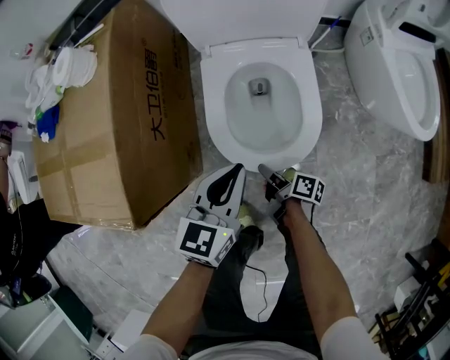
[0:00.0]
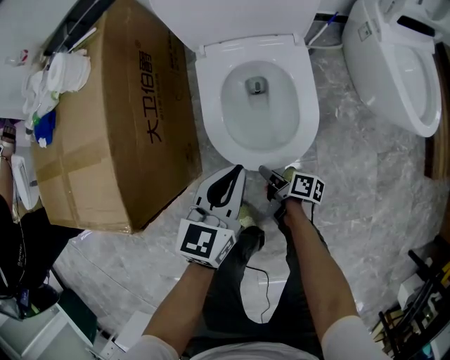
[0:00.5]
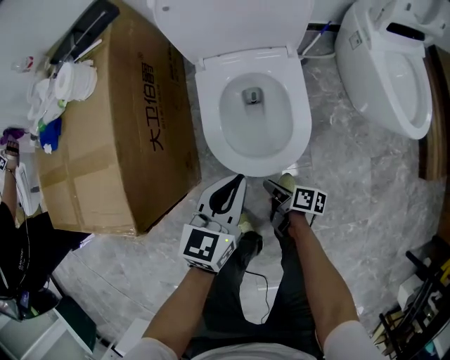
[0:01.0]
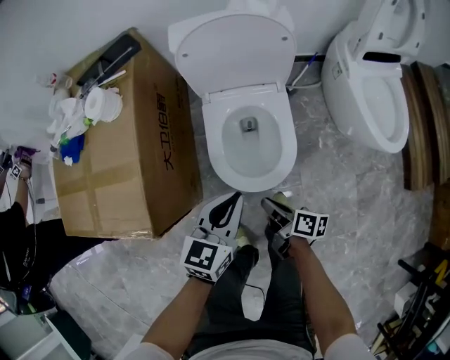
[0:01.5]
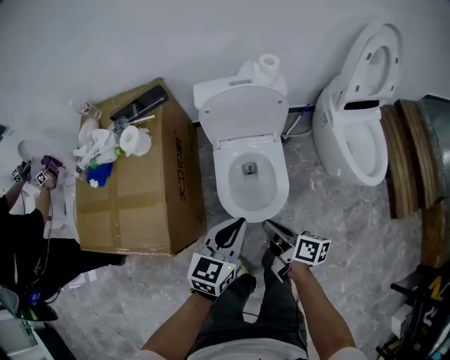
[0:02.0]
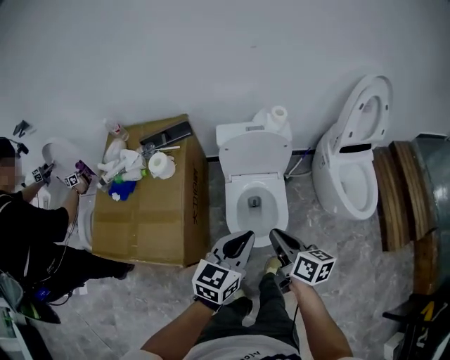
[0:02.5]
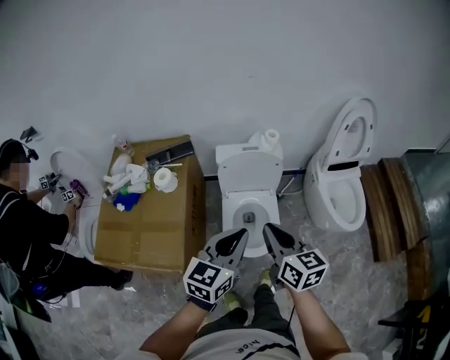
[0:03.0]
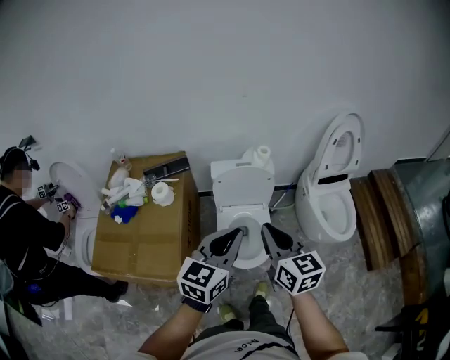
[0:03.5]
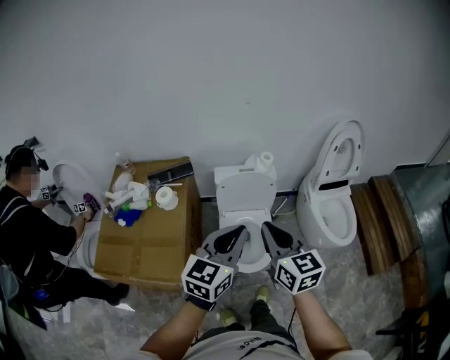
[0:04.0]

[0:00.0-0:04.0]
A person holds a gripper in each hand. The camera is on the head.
0:00.0 to 0:02.0: The right gripper goes some 35 cm upward, and turns by approximately 20 degrees. The left gripper moves upward, some 20 cm.
0:02.0 to 0:04.0: Both grippers travel together upward, some 35 cm. The right gripper rotates around the line of its fingers by roughly 60 degrees, counterclockwise from behind.

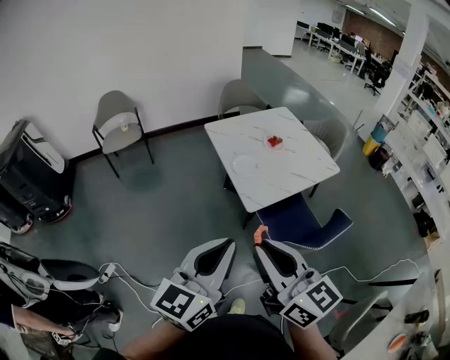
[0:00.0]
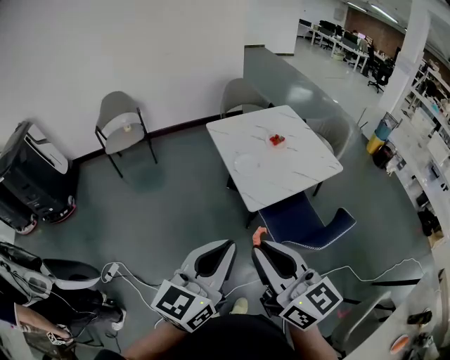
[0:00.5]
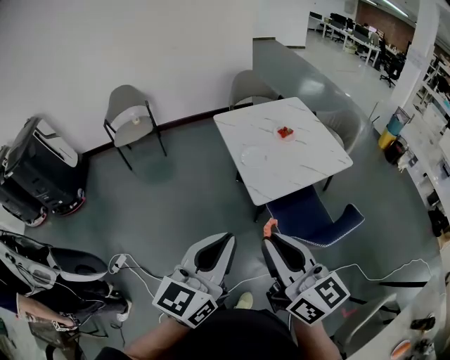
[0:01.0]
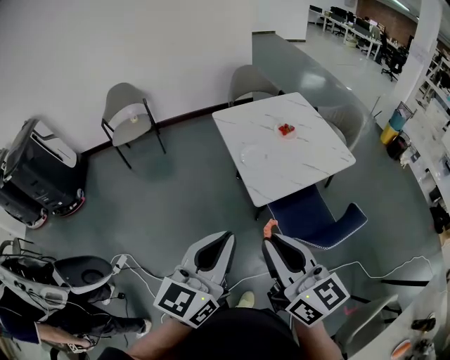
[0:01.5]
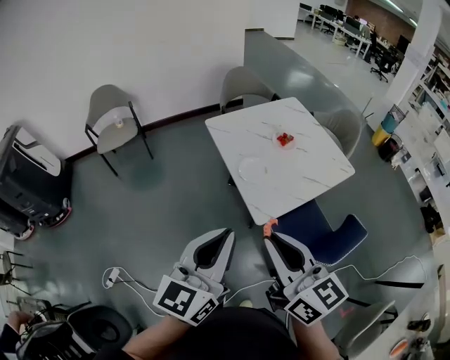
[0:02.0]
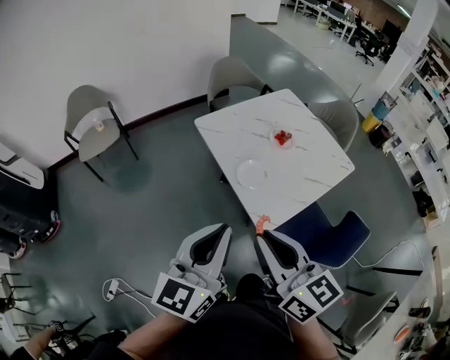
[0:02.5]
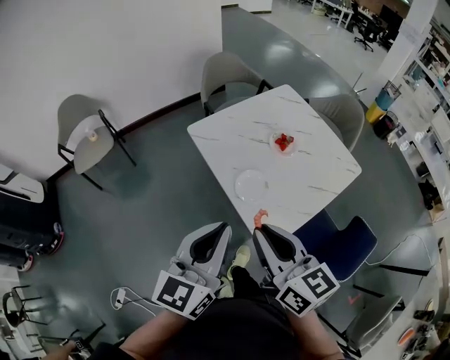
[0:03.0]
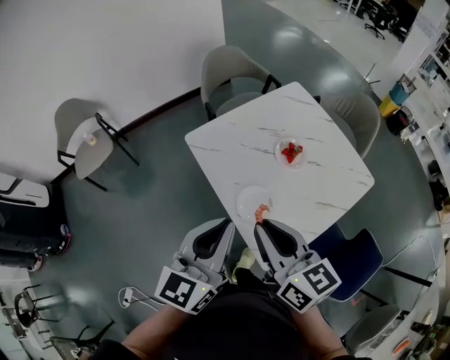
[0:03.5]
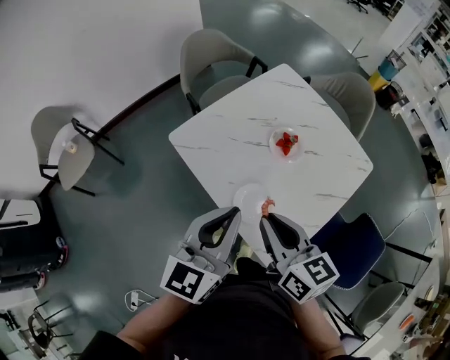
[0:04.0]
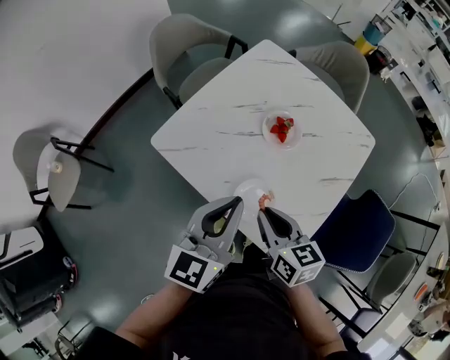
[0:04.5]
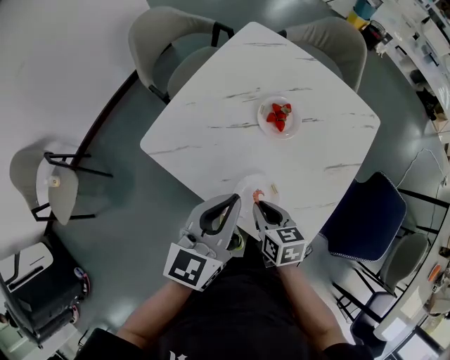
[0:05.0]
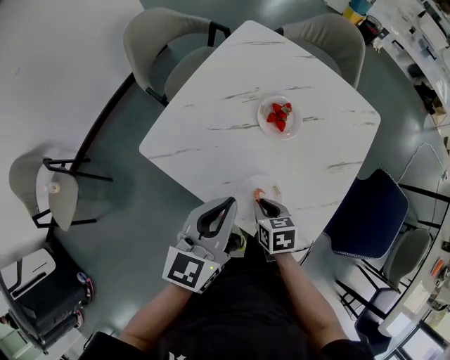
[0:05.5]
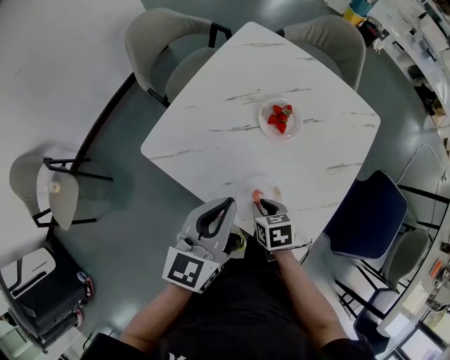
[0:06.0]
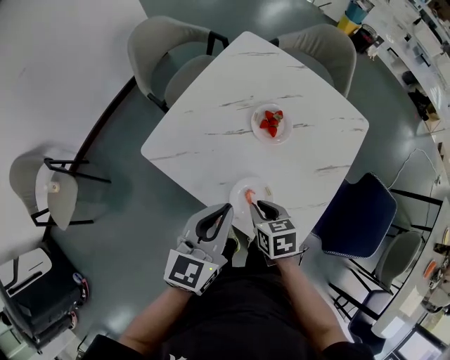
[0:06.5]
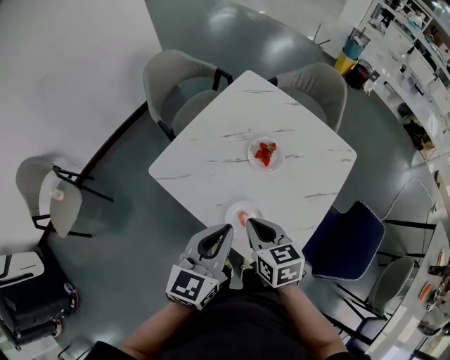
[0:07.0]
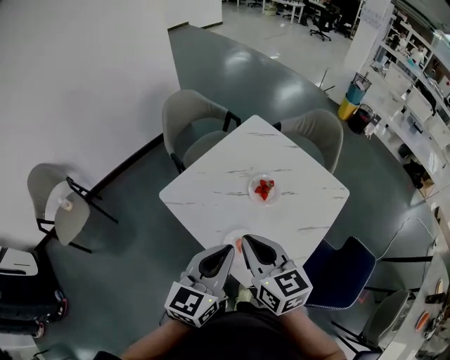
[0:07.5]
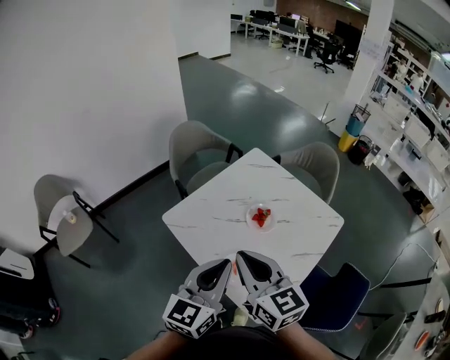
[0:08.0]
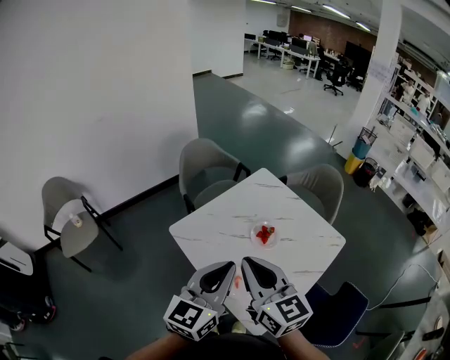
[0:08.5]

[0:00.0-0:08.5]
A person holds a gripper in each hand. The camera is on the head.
0:00.0 to 0:02.0: Both grippers travel together forward, about 15 cm.
0:02.0 to 0:04.0: Both grippers travel together forward, about 40 cm. The right gripper rotates some 30 degrees.
0:04.0 to 0:06.5: The right gripper heads downward, covering approximately 25 cm, and tips its fingers downward by some 40 degrees. Meanwhile the left gripper goes about 15 cm downward and forward.
0:06.5 to 0:08.5: The right gripper shifts about 35 cm upward, and tips its fingers upward by about 50 degrees. The left gripper goes about 20 cm upward, and rotates about 20 degrees.

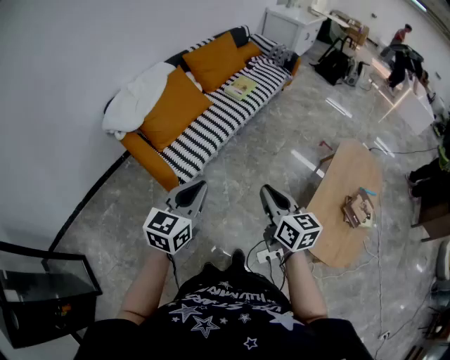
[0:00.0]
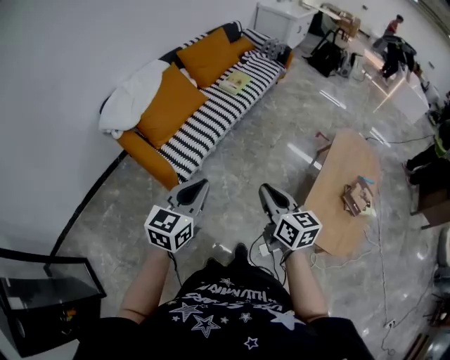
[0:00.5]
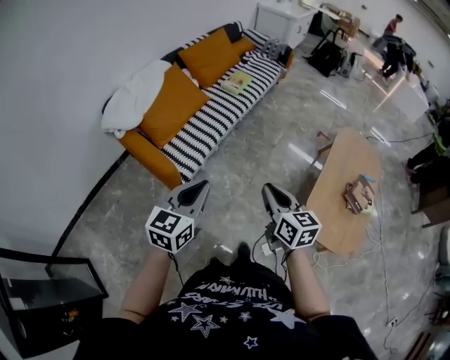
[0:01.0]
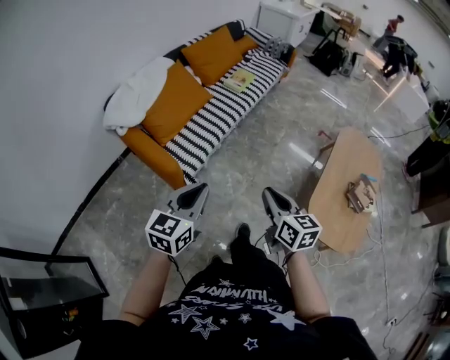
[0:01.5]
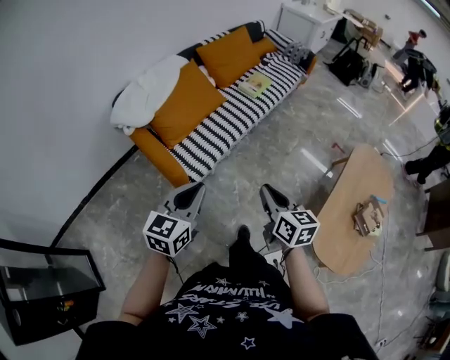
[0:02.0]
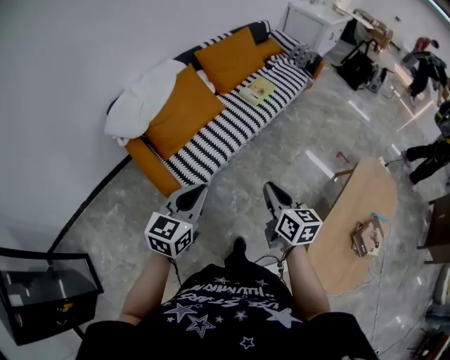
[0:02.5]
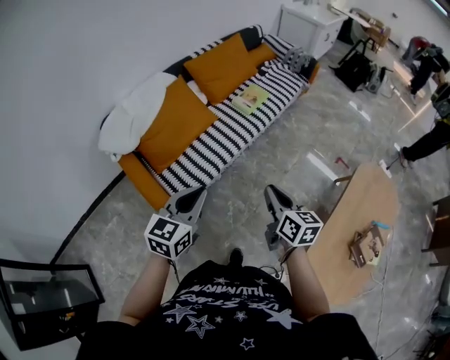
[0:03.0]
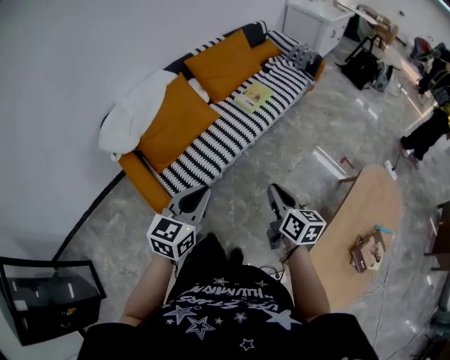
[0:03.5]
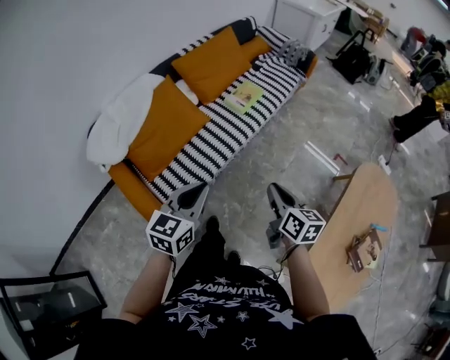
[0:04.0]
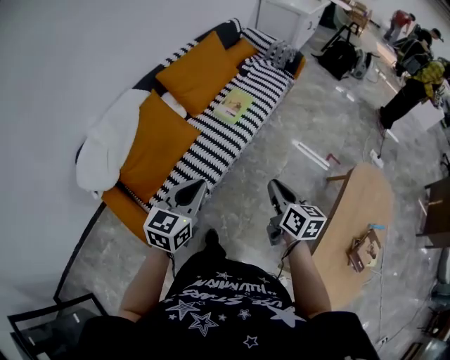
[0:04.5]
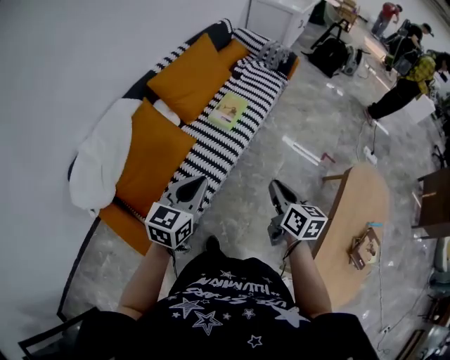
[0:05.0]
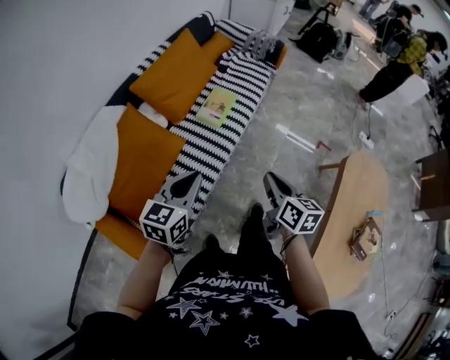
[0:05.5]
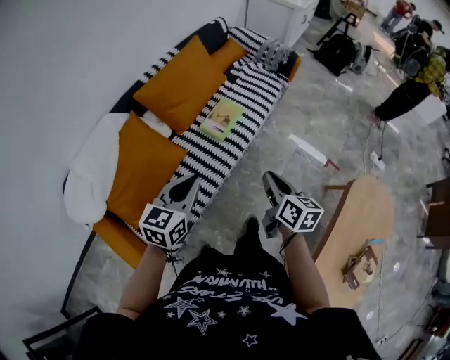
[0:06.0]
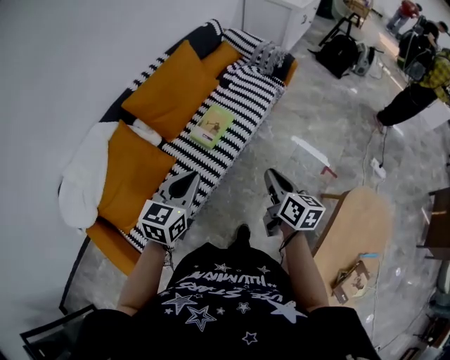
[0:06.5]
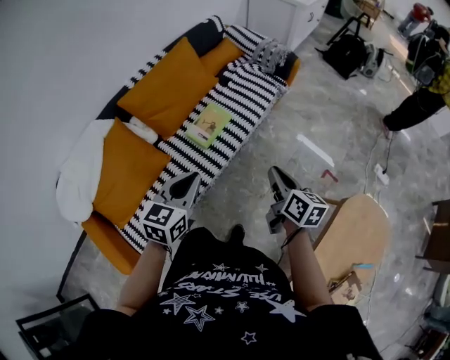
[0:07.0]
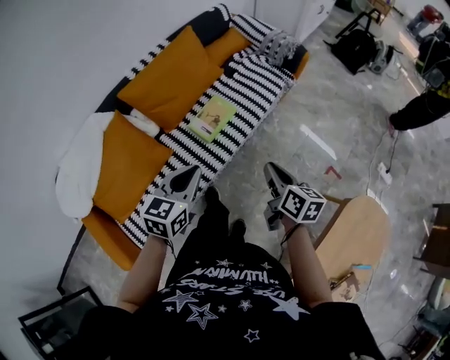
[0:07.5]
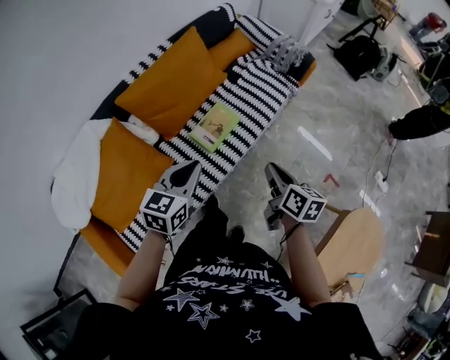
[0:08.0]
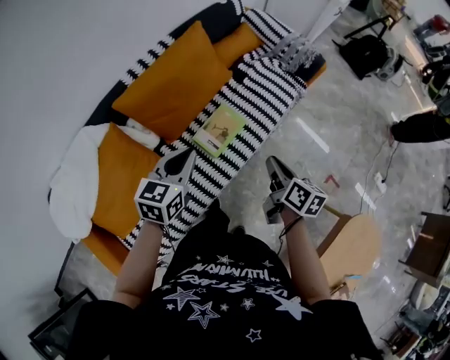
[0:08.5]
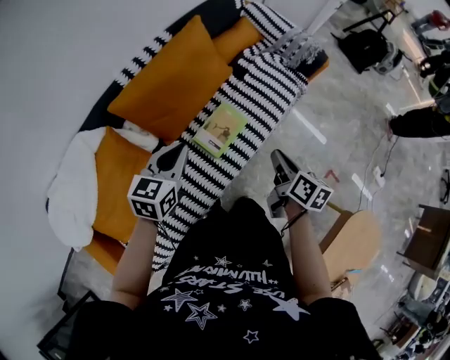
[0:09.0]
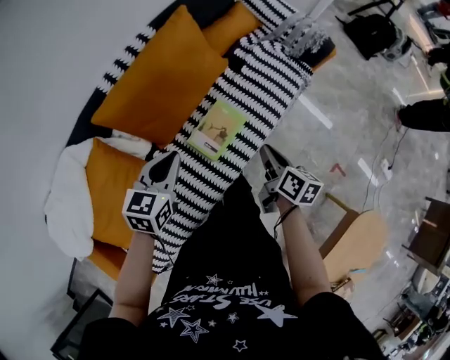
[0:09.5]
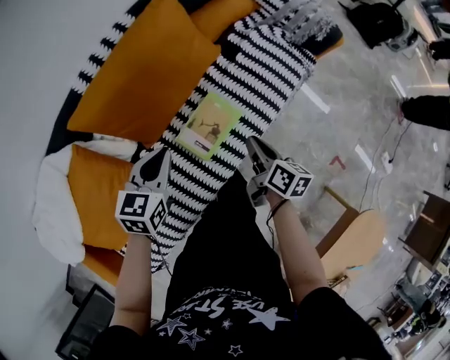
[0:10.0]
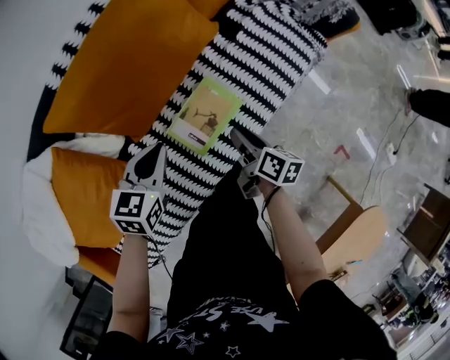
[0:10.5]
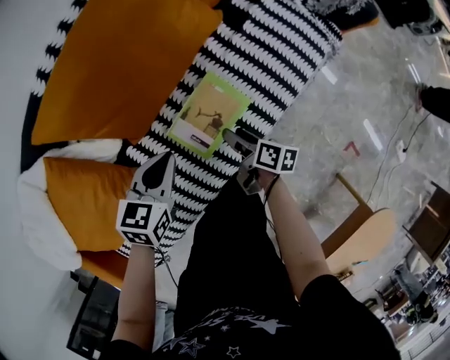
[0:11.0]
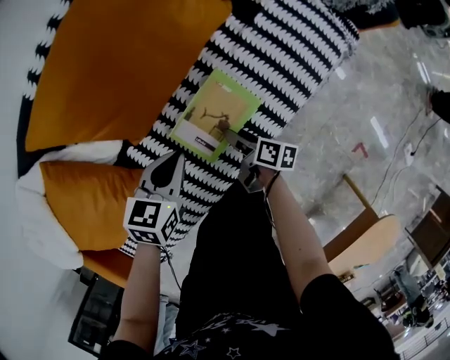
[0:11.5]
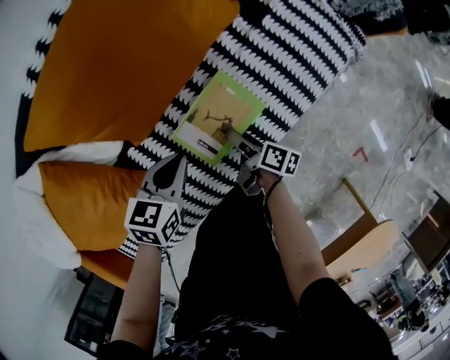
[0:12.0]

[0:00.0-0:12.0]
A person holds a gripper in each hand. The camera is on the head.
0:00.0 to 0:02.0: The right gripper heads to the left and forward, covering approximately 5 cm. The left gripper travels to the left by approximately 5 cm.
0:02.0 to 0:04.0: Both grippers move forward and to the right, roughly 30 cm.
0:04.0 to 0:06.0: The grippers both shift forward by roughly 25 cm.
0:06.0 to 0:08.0: Both grippers travel together forward, roughly 20 cm.
0:08.0 to 0:10.0: The left gripper travels forward, downward and to the left by some 30 cm. Meanwhile the right gripper is displaced forward and downward by approximately 30 cm.
0:10.0 to 0:12.0: The two grippers go about 20 cm downward. The right gripper turns by some 30 degrees, and opens its fingers.

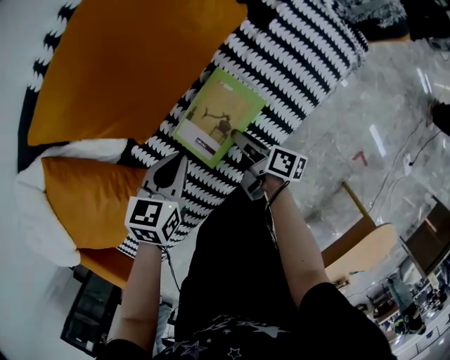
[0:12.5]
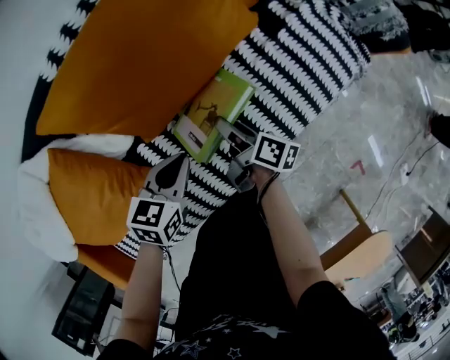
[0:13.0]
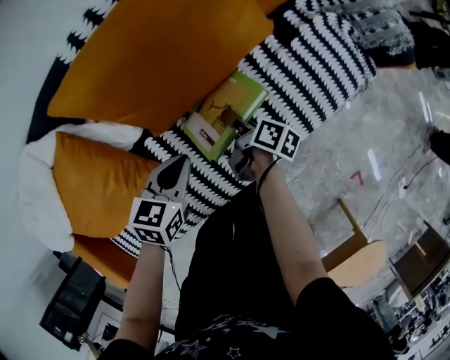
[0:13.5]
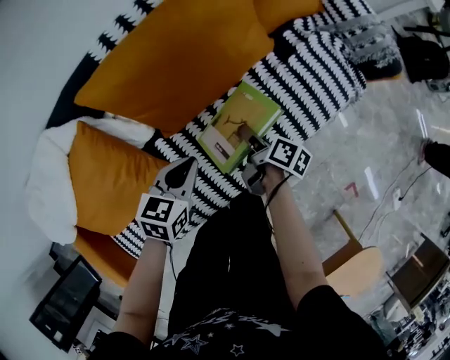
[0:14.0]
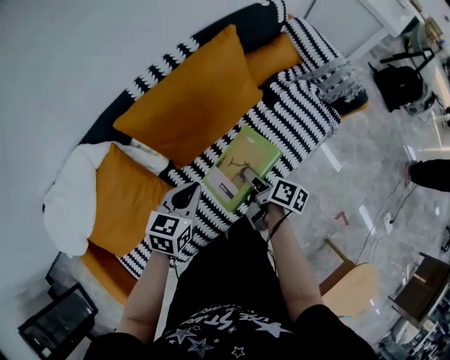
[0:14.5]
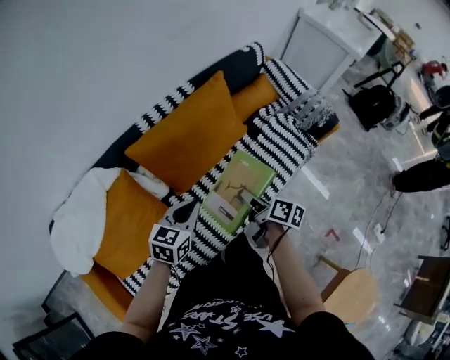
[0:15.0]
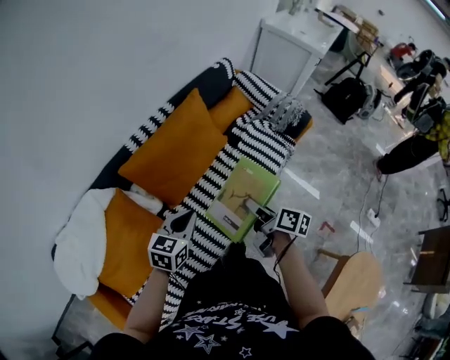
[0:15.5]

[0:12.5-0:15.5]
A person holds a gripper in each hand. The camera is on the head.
0:12.5 to 0:14.0: The right gripper shifts approximately 10 cm upward and forward, while the left gripper goes about 10 cm upward.
0:14.0 to 0:15.5: The left gripper travels upward by approximately 20 cm, while the right gripper goes some 35 cm upward and backward.
